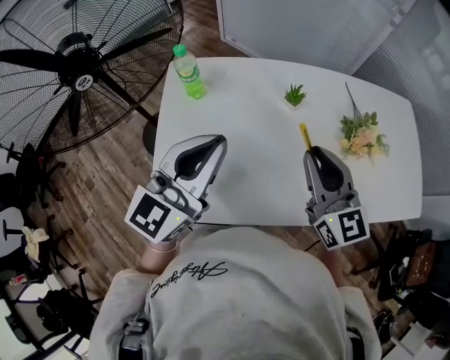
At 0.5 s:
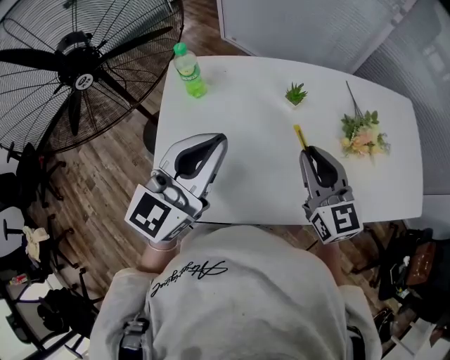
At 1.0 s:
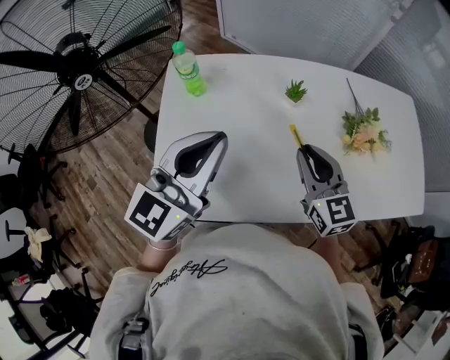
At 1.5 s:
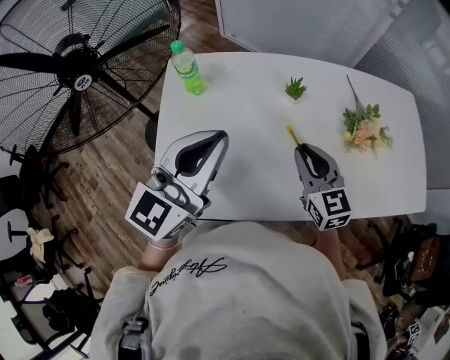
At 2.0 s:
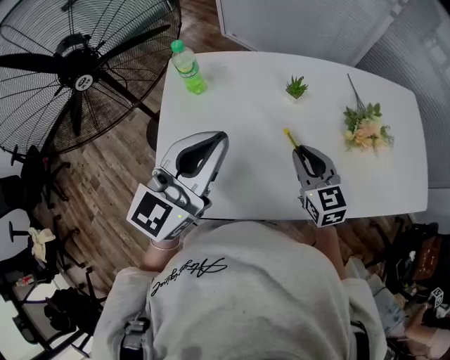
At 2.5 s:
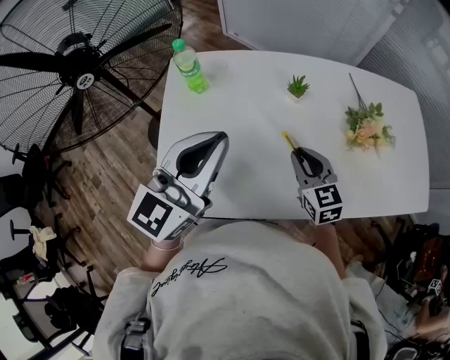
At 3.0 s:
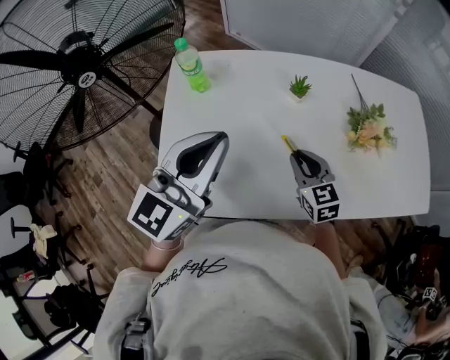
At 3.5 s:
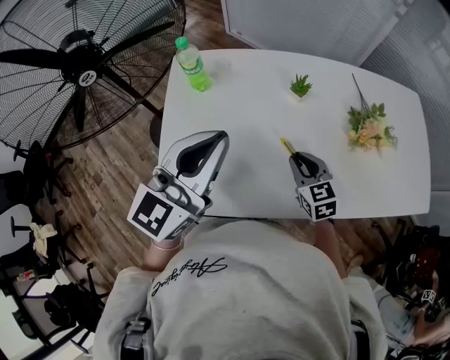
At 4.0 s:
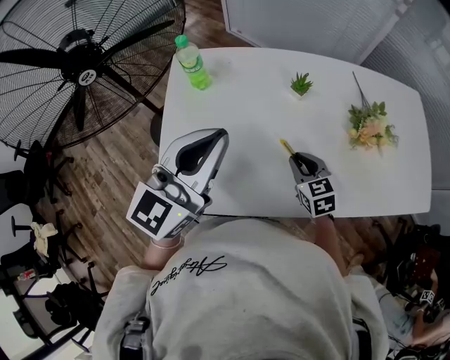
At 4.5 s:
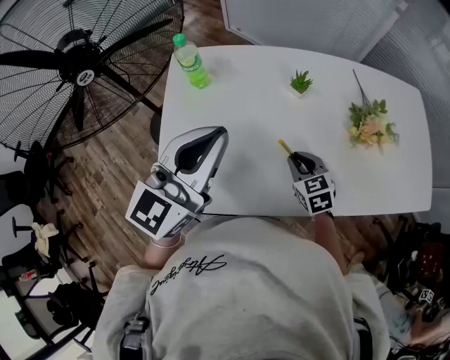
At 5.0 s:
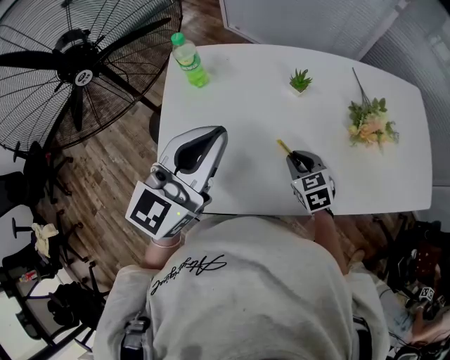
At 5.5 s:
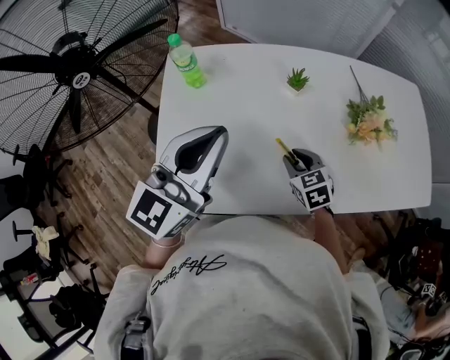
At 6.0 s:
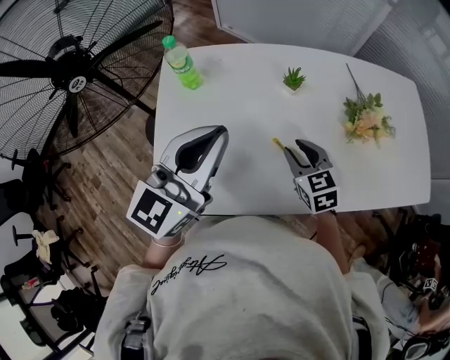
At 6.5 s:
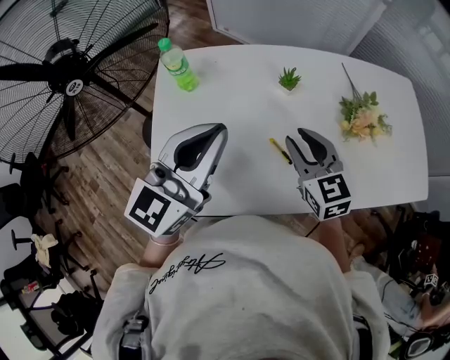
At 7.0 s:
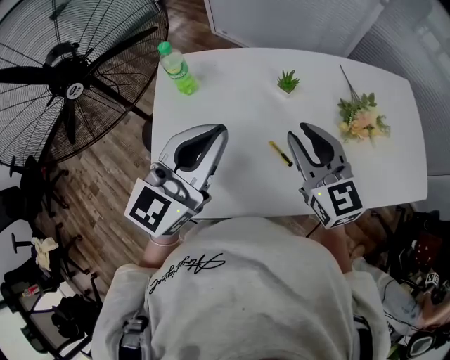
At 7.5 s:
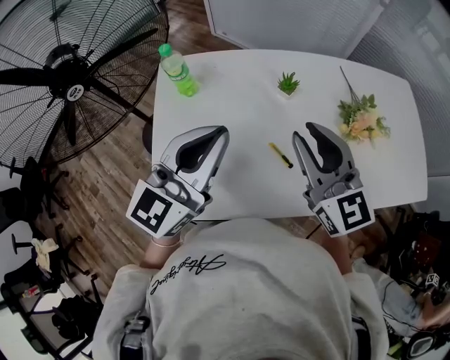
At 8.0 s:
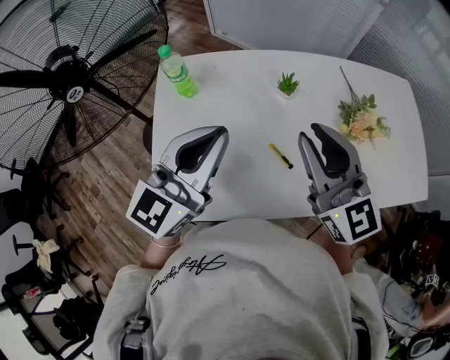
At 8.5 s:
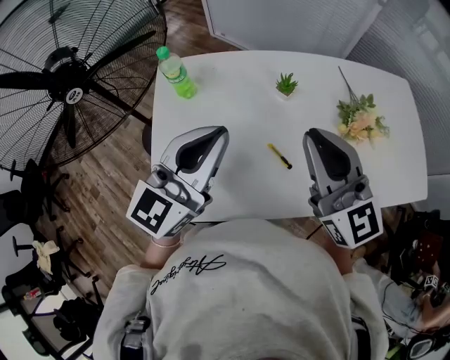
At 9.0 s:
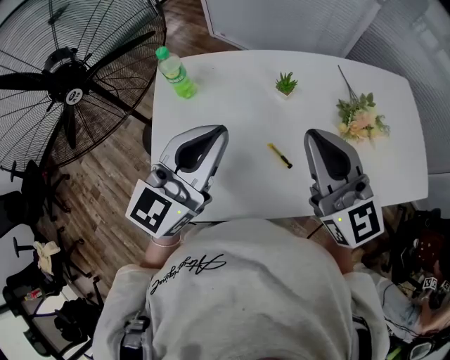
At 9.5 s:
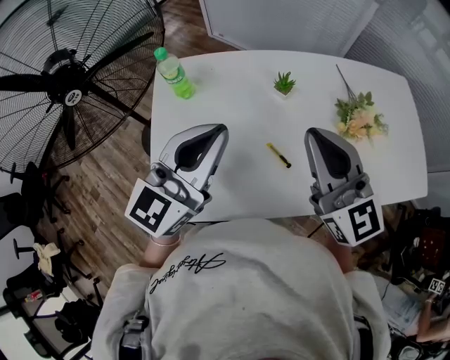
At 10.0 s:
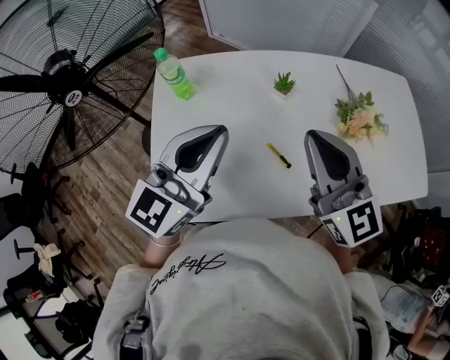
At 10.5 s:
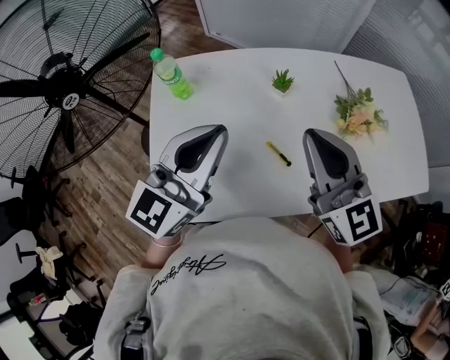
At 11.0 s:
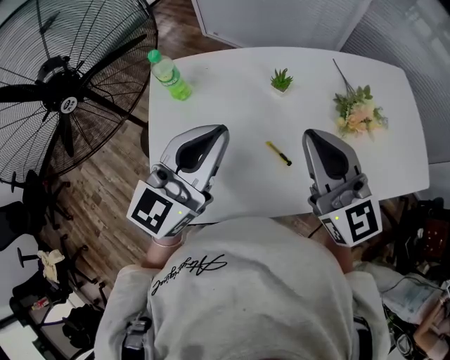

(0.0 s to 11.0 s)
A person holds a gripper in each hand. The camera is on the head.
0.0 s - 2.0 s: The right gripper heads downward, covering some 10 cm.
2.0 s - 3.5 s: The right gripper moves downward, approximately 5 cm.
3.5 s - 5.5 s: The grippers move only a little.
5.5 s - 7.5 s: The right gripper heads upward, covering some 25 cm, and angles its fingers upward, by some 40 degrees.
7.5 s - 9.0 s: The right gripper closes up.
9.0 s - 11.0 s: Both grippers stay put.

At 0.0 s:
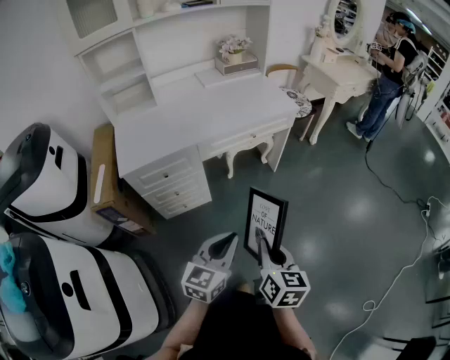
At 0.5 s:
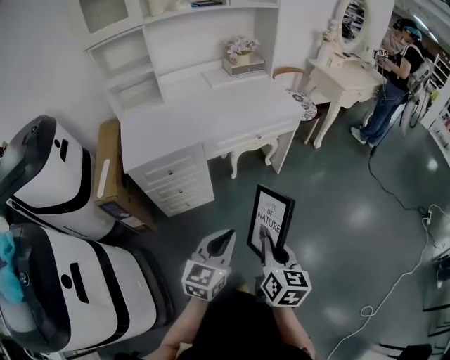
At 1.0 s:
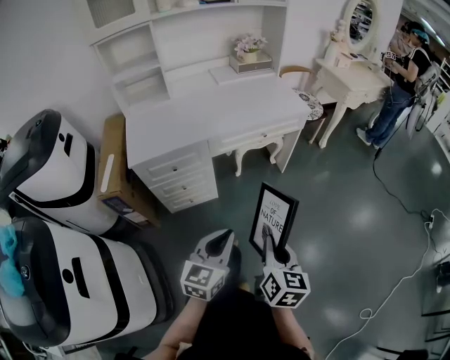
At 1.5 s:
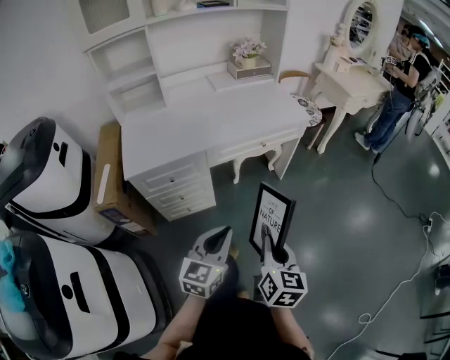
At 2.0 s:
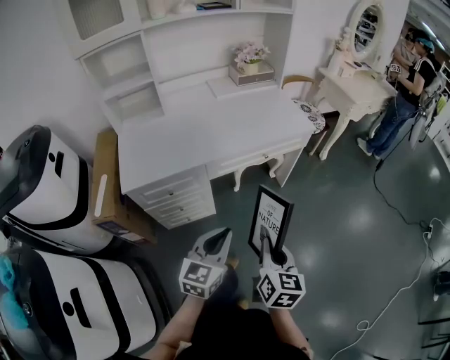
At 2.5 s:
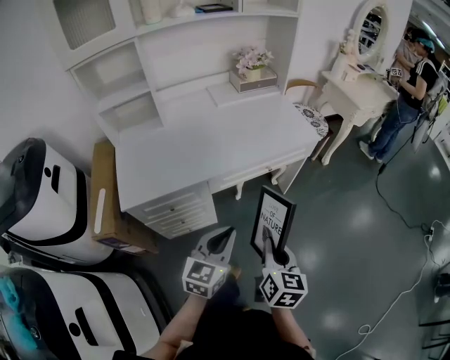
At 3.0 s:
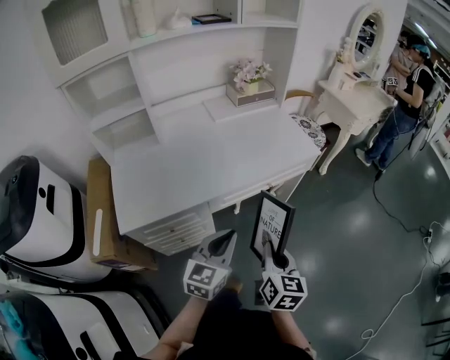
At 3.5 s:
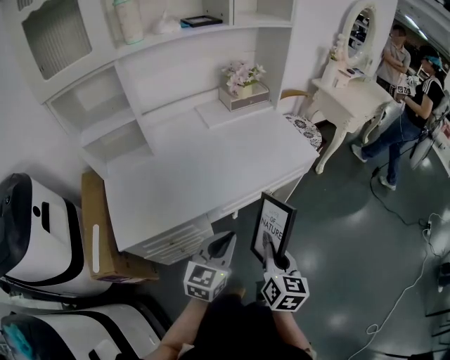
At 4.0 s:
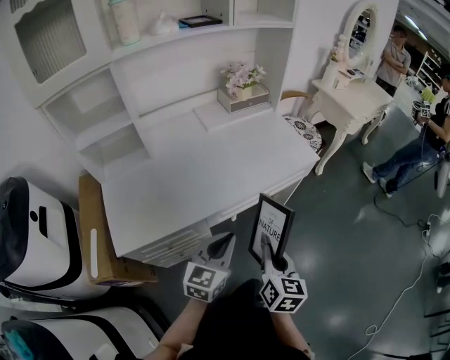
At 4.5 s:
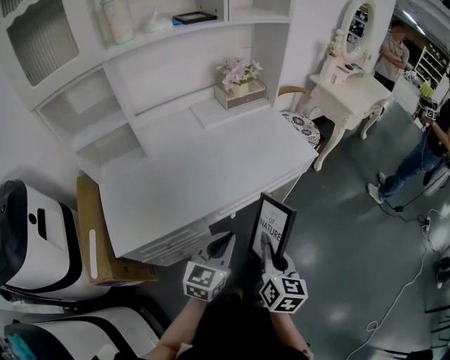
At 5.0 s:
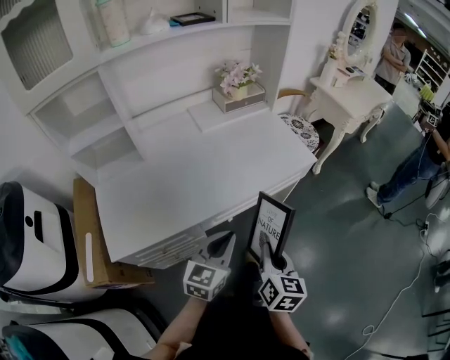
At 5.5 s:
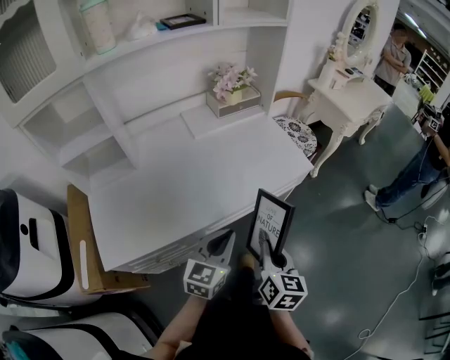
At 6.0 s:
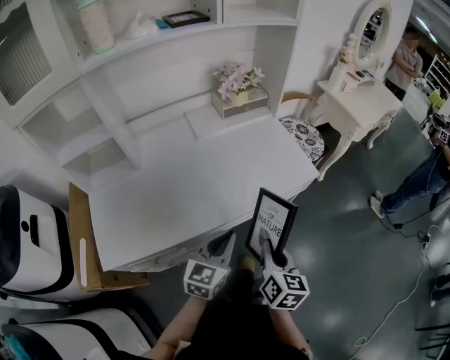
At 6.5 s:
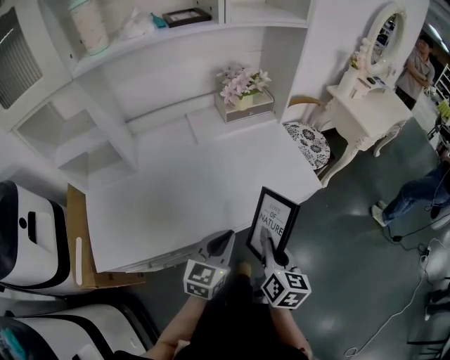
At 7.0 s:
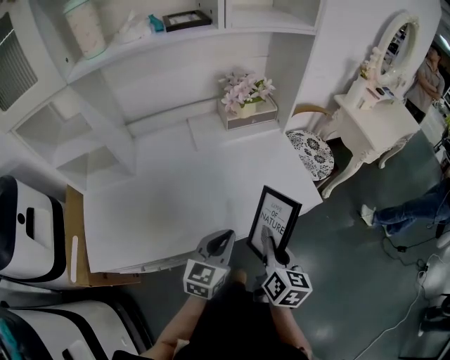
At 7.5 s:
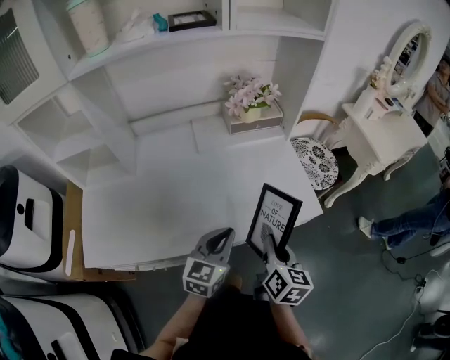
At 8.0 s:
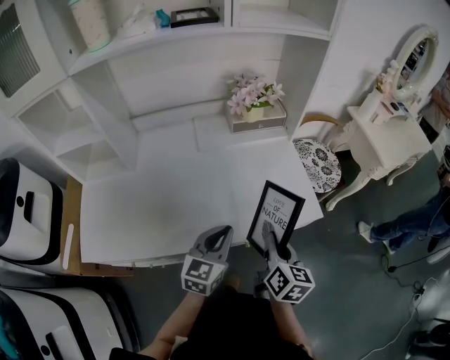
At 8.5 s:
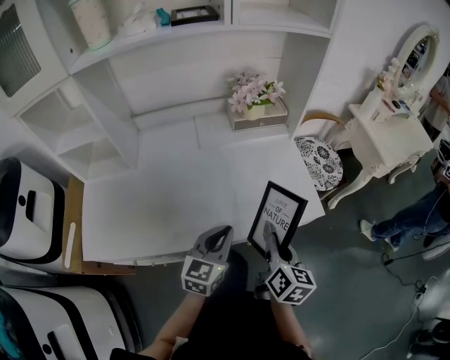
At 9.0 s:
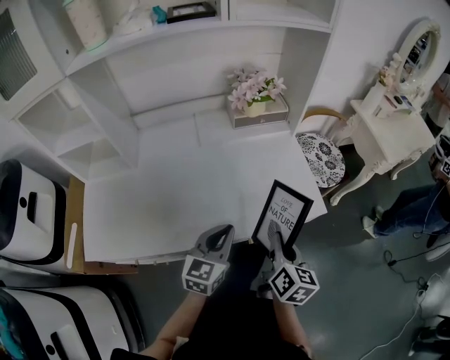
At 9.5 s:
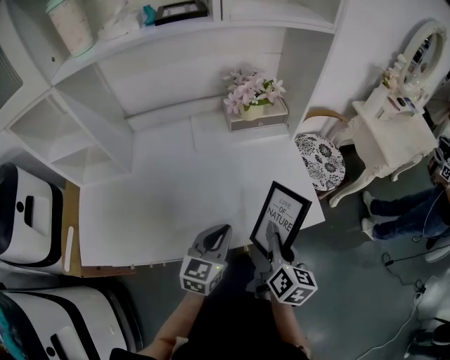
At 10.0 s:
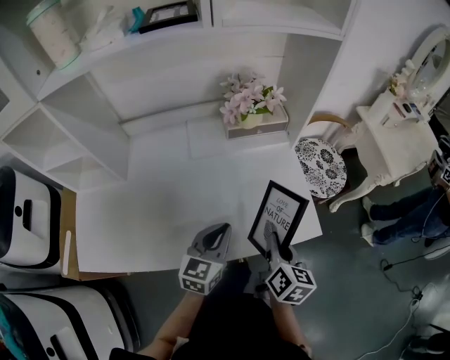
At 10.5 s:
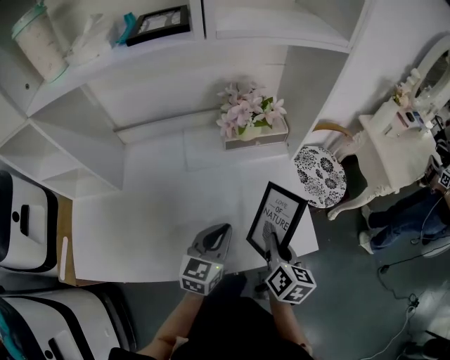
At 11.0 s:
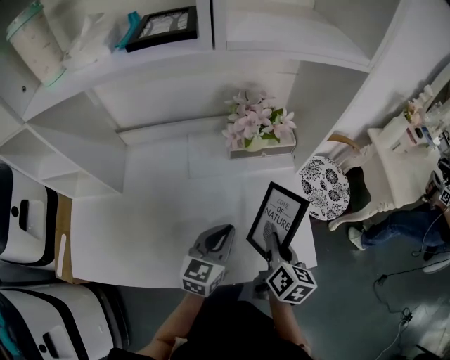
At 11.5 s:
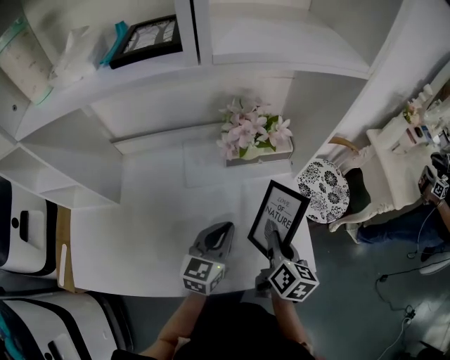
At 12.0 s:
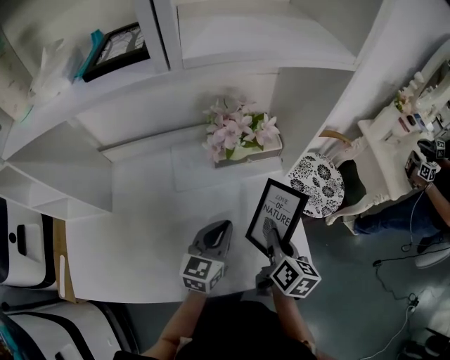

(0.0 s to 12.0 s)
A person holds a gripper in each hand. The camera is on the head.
0.0 s - 2.0 s: The left gripper is displaced forward and to the left by roughly 15 cm; the right gripper goes some 10 cm forward.
2.0 s - 4.0 s: The right gripper shifts approximately 20 cm forward and to the left, while the left gripper goes about 20 cm forward.
4.0 s - 6.0 s: Both grippers travel together forward, roughly 10 cm.
6.0 s - 8.0 s: The grippers both shift forward by approximately 15 cm.
8.0 s - 10.0 s: Both grippers travel together forward, some 10 cm.
10.0 s - 12.0 s: Both grippers move forward, roughly 15 cm.

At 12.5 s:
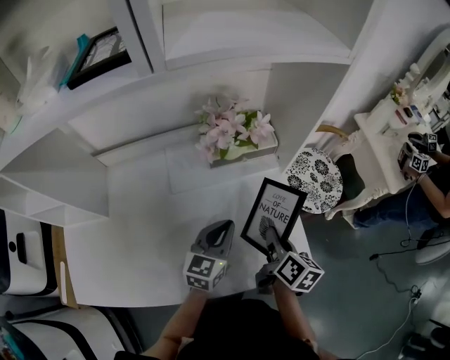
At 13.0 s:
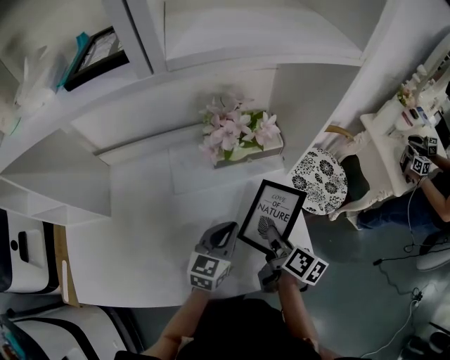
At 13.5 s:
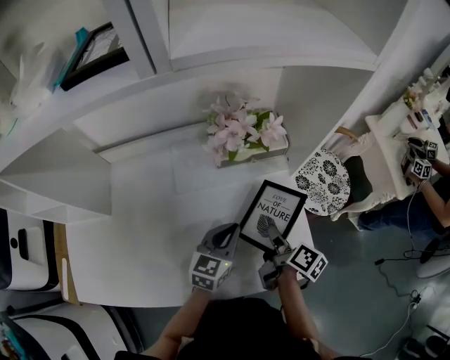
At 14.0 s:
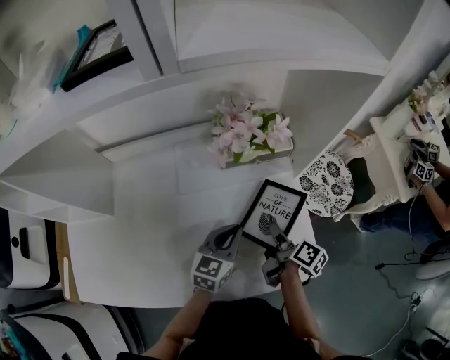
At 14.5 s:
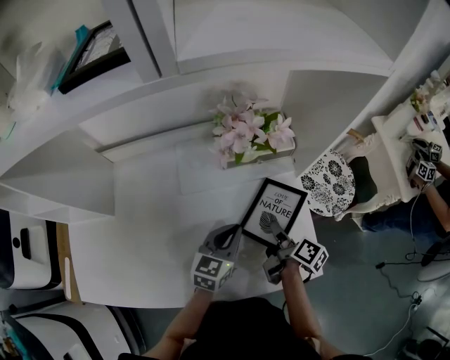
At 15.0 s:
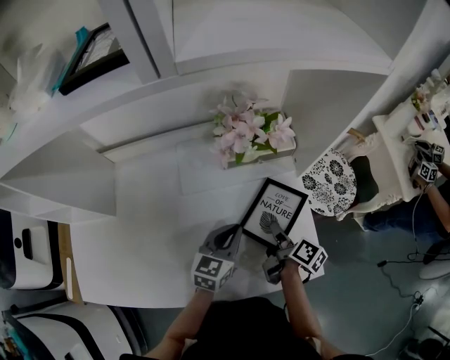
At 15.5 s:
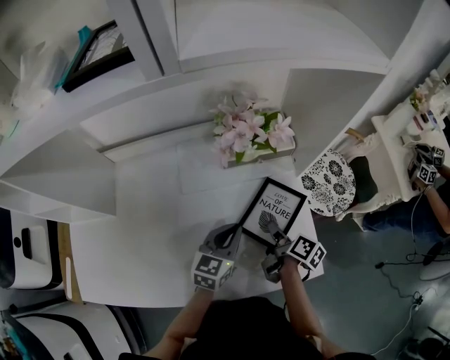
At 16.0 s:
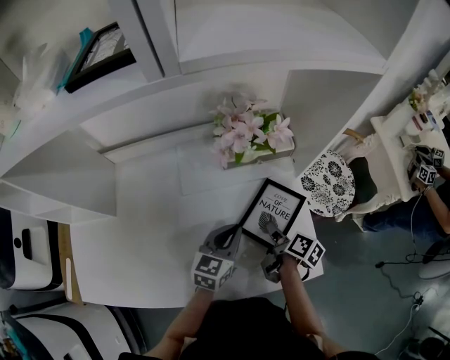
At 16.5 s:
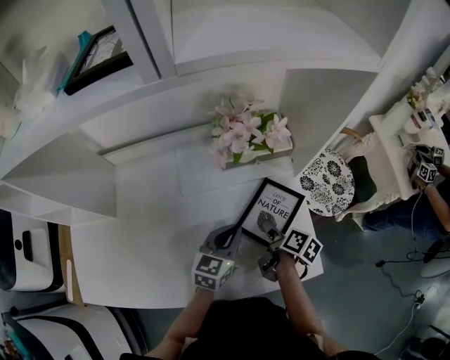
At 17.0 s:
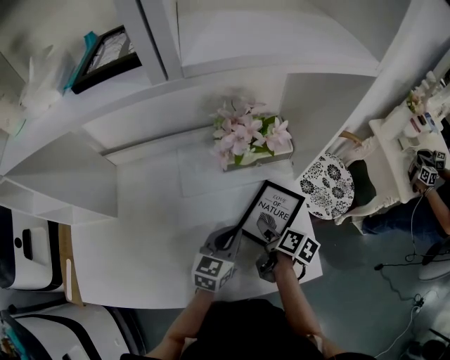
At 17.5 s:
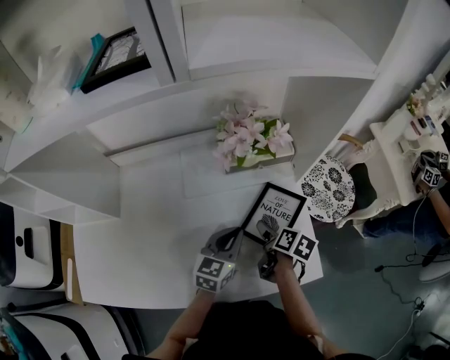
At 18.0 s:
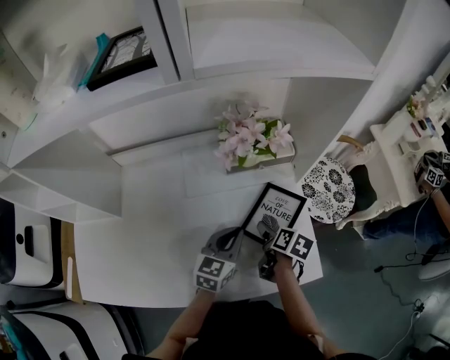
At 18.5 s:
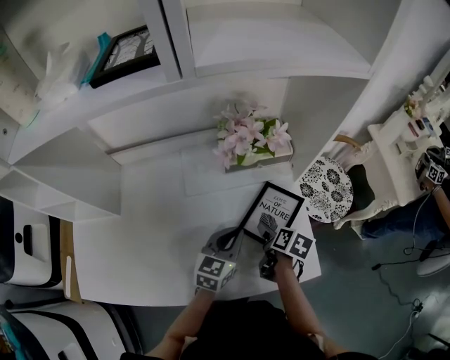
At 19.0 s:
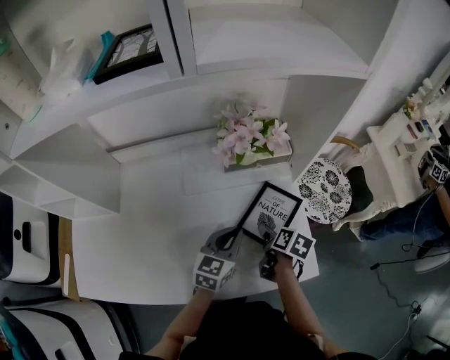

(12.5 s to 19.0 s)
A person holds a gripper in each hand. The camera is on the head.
12.5 s - 14.5 s: The right gripper travels downward by roughly 5 cm, and changes its angle by some 30 degrees.
14.5 s - 17.0 s: The right gripper opens up.
17.0 s - 19.0 s: The grippers move only a little.
